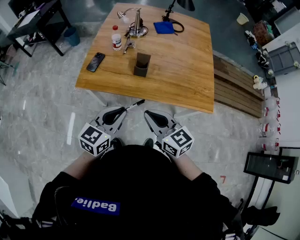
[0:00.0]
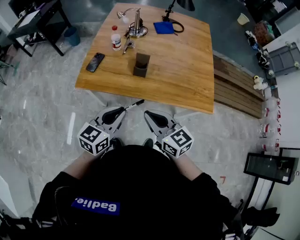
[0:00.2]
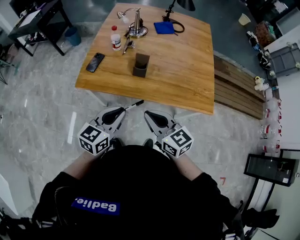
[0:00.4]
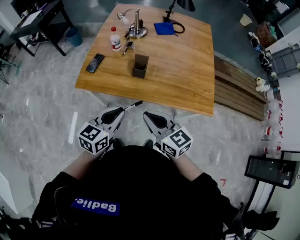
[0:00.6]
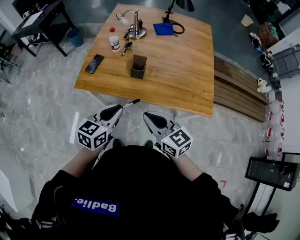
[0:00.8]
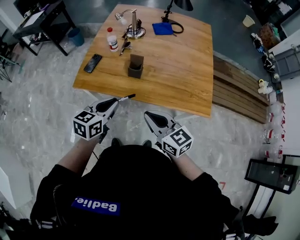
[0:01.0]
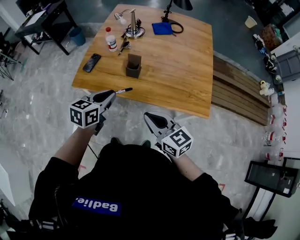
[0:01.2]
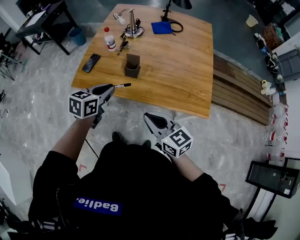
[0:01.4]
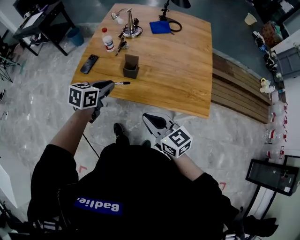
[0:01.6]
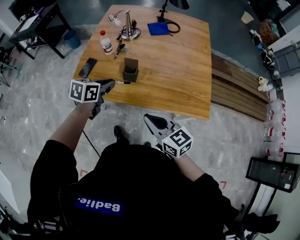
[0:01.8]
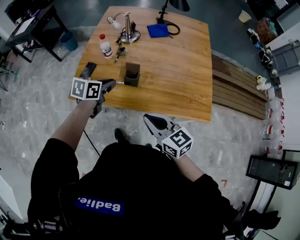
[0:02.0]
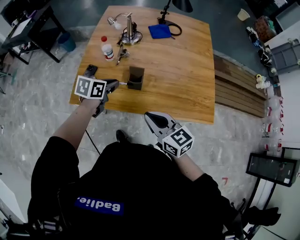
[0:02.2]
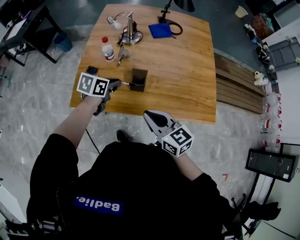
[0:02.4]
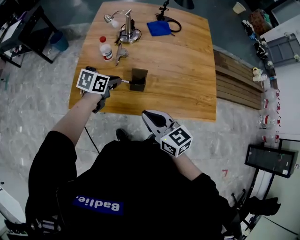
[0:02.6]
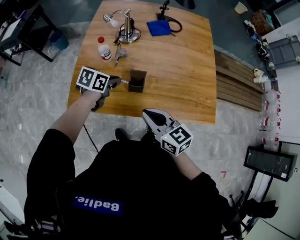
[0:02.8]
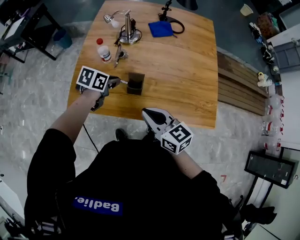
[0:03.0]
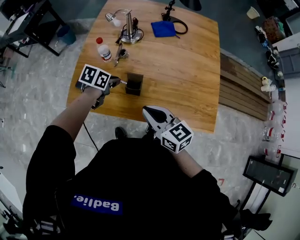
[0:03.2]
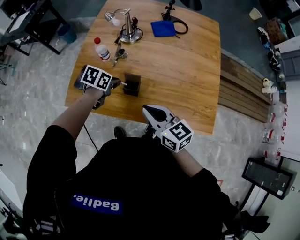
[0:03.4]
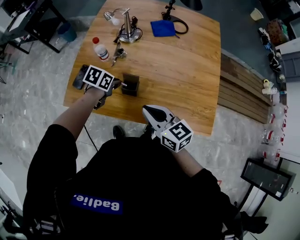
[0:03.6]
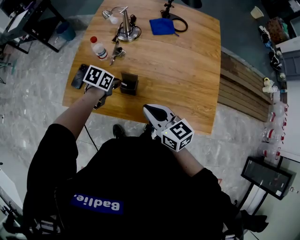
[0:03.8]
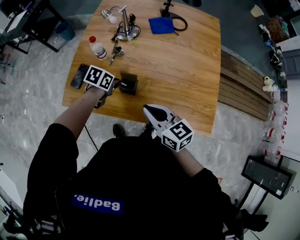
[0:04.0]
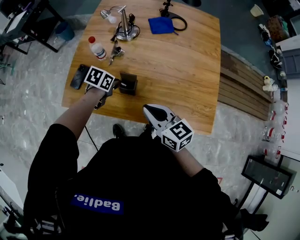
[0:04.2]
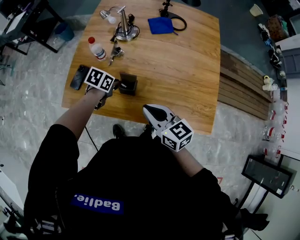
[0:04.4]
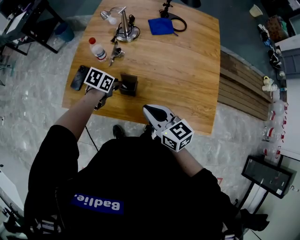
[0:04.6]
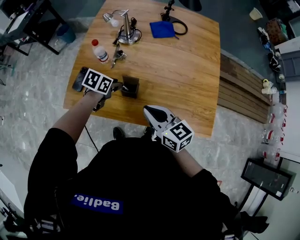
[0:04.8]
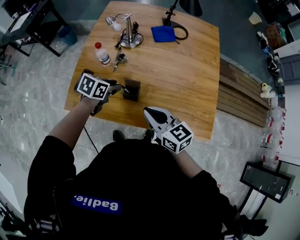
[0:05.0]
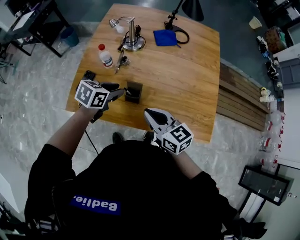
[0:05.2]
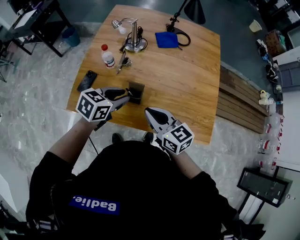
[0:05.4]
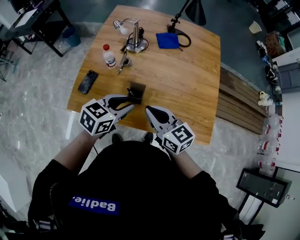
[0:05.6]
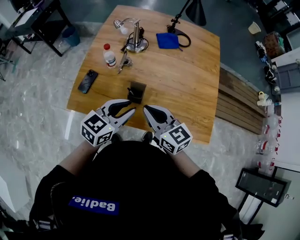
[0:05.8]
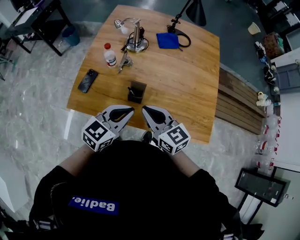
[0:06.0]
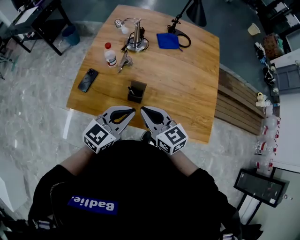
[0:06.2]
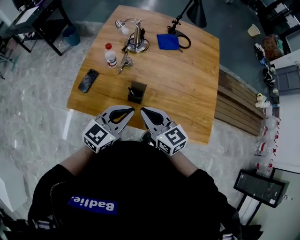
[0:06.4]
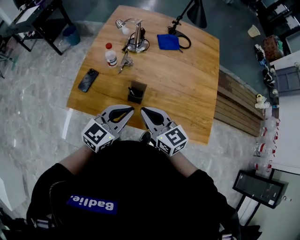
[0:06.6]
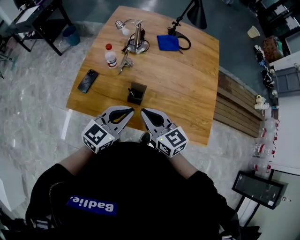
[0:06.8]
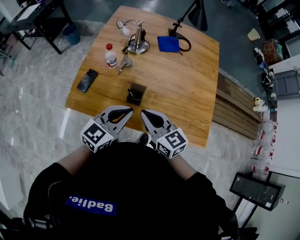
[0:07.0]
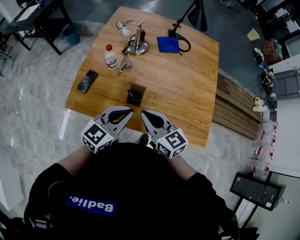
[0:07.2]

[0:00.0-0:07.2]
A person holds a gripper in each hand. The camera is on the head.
0:00.0 to 0:01.4: The right gripper goes roughly 10 cm to the right; the left gripper shifts roughly 10 cm forward.
0:01.4 to 0:02.8: The right gripper moves forward and to the left, approximately 20 cm. Meanwhile the left gripper shifts some 20 cm forward and downward, and swivels about 20 degrees.
0:02.8 to 0:04.4: The right gripper heads forward and to the right, covering about 10 cm. The left gripper heads downward, covering about 10 cm.
0:04.4 to 0:05.8: The left gripper travels upward and backward by roughly 20 cm, and tilts its fingers roughly 40 degrees upward. The right gripper ends up approximately 5 cm from where it was.
0:05.8 to 0:07.2: The left gripper closes its fingers.

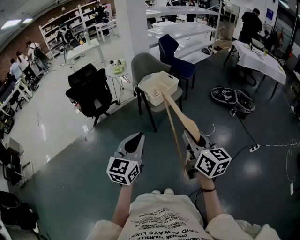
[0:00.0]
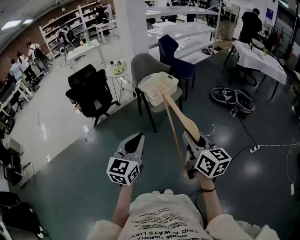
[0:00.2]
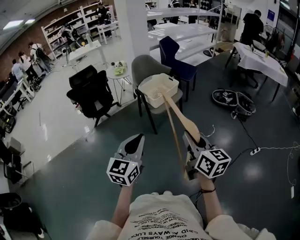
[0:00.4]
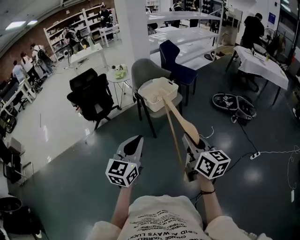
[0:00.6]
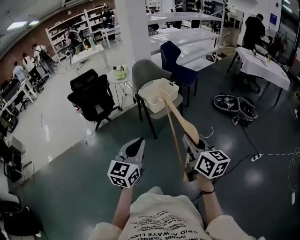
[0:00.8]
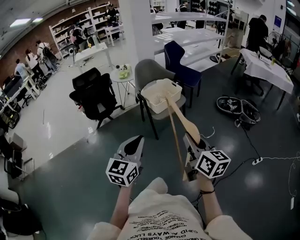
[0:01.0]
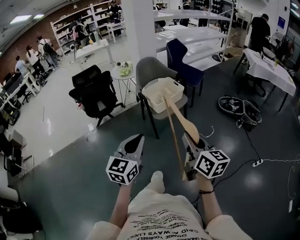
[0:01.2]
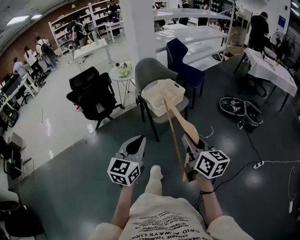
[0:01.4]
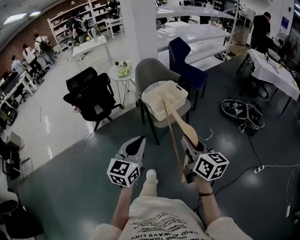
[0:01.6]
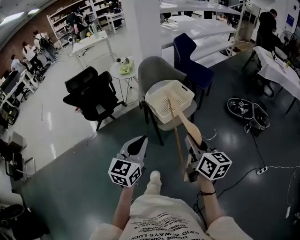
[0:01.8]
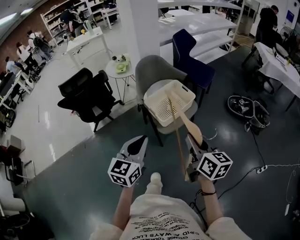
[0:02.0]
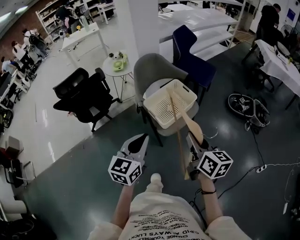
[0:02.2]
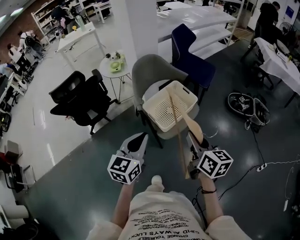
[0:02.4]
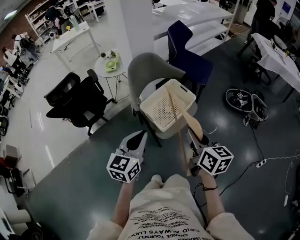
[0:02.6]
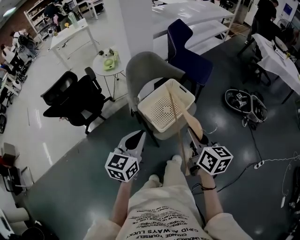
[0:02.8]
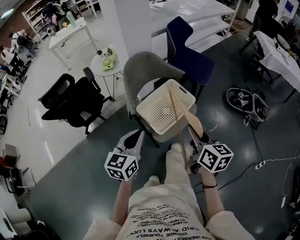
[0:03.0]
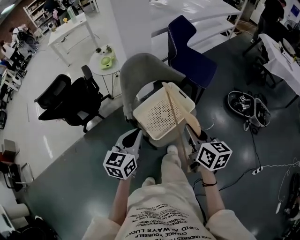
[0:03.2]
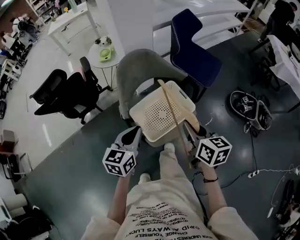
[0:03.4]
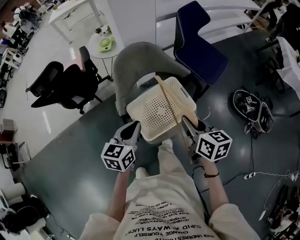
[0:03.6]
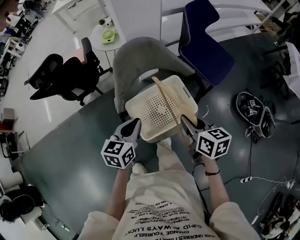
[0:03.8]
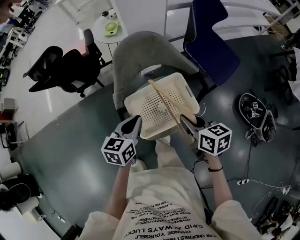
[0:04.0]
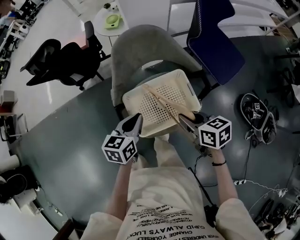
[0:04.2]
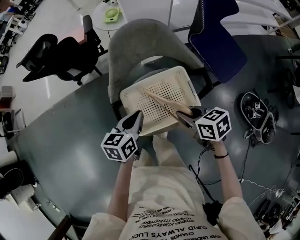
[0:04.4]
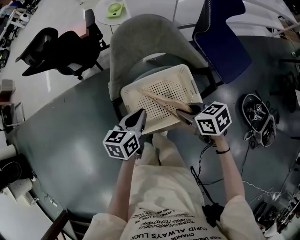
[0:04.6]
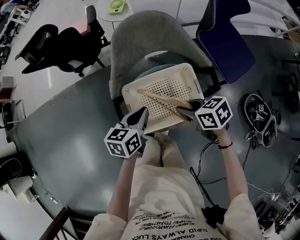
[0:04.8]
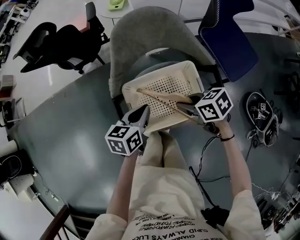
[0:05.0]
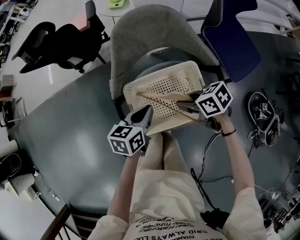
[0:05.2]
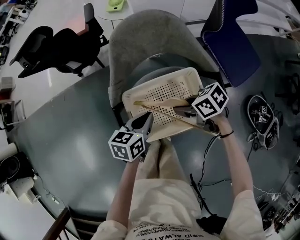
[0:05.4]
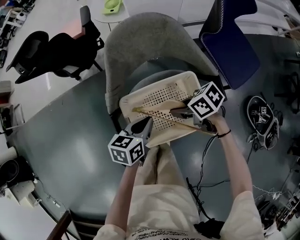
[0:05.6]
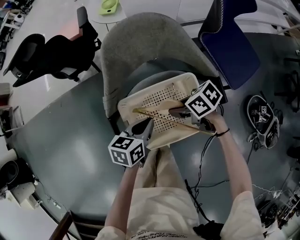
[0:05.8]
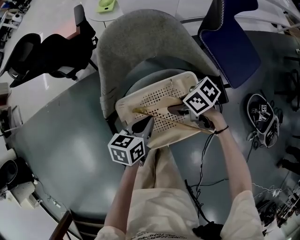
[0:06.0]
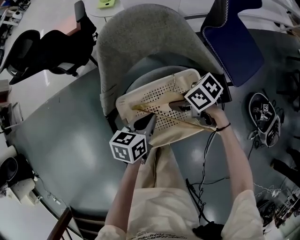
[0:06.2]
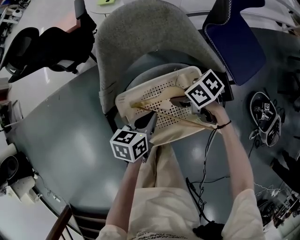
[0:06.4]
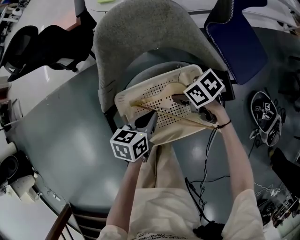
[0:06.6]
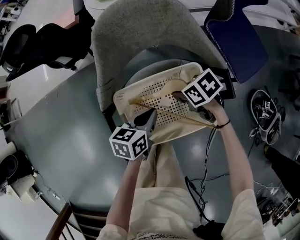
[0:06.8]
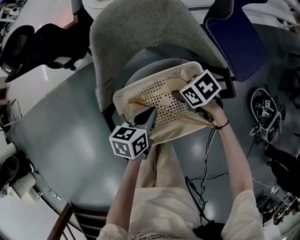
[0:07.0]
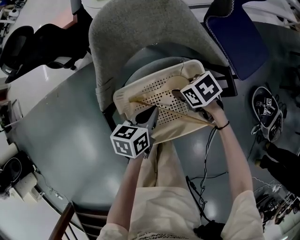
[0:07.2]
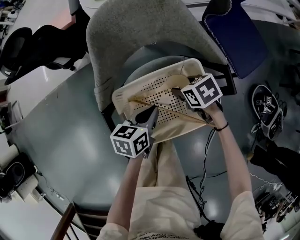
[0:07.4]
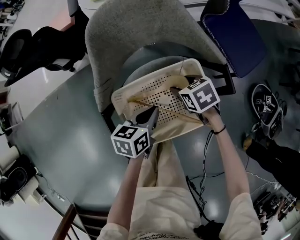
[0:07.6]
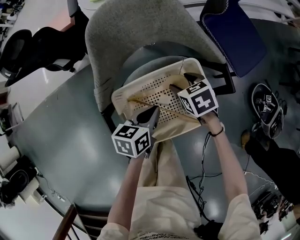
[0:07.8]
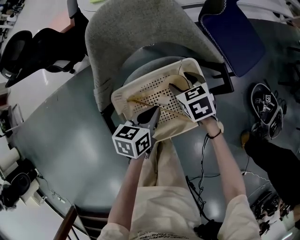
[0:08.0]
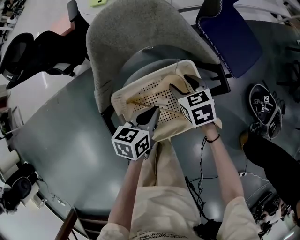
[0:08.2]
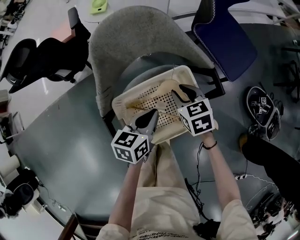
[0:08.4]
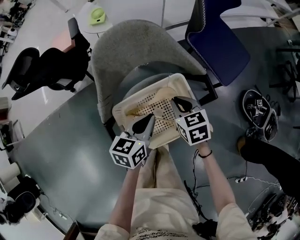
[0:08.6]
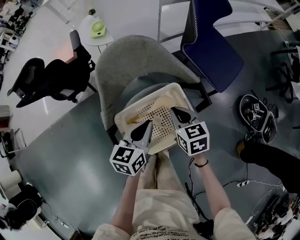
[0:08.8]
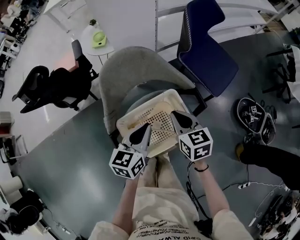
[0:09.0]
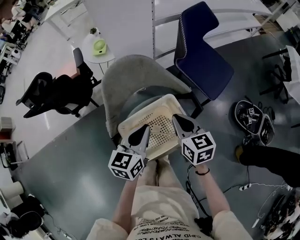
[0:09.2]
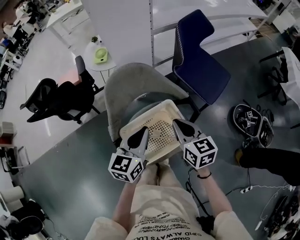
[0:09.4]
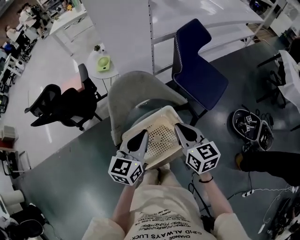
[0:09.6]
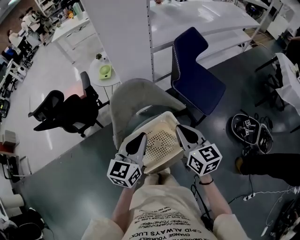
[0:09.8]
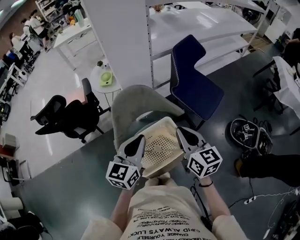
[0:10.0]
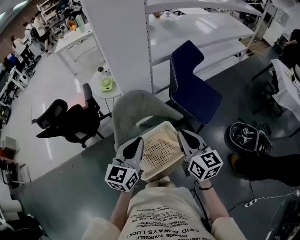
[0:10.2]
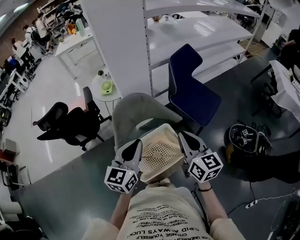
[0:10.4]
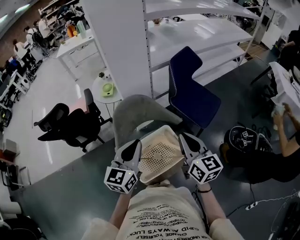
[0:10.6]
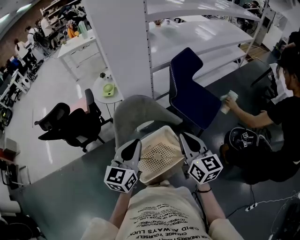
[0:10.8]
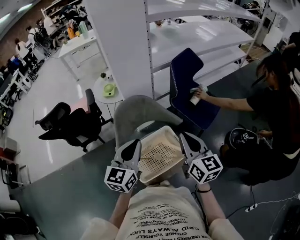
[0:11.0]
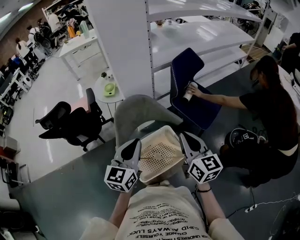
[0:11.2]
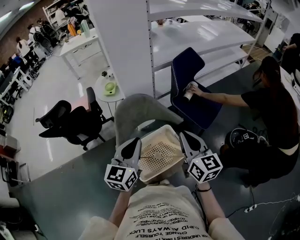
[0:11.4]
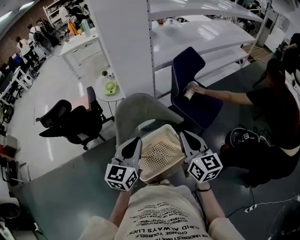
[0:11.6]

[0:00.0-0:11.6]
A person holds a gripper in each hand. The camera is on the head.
0:00.0 to 0:01.4: The two grippers go some 10 cm forward.
0:01.4 to 0:02.8: The grippers both shift forward by approximately 35 cm.
0:02.8 to 0:04.4: The left gripper moves about 30 cm, and changes its angle by some 40 degrees. Meanwhile the right gripper changes place by roughly 30 cm, and turns by about 60 degrees.
0:04.4 to 0:05.8: The grippers both shift downward by some 10 cm. The right gripper rotates roughly 30 degrees.
0:05.8 to 0:07.2: The right gripper goes approximately 5 cm downward, rotates some 20 degrees, and opens up.
0:07.2 to 0:08.8: The grippers both shift upward by some 15 cm. The right gripper rotates roughly 40 degrees, and closes its fingers.
0:08.8 to 0:10.2: Both grippers travel together upward, roughly 25 cm. The right gripper changes its angle by about 30 degrees. Meanwhile the left gripper swivels about 30 degrees.
0:10.2 to 0:11.6: The grippers stay close to where they were, moving slightly.

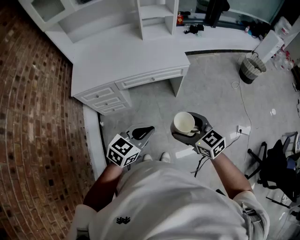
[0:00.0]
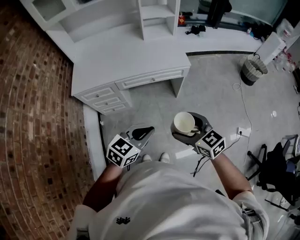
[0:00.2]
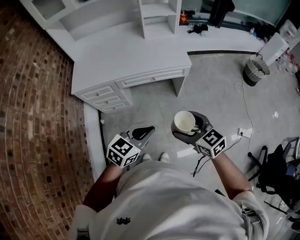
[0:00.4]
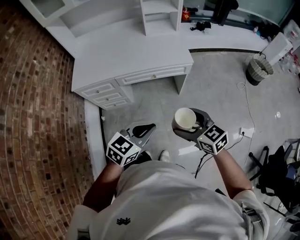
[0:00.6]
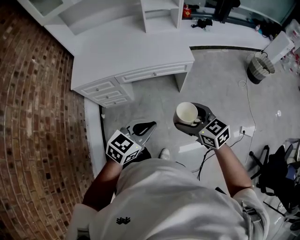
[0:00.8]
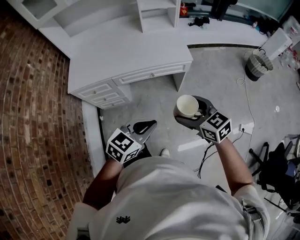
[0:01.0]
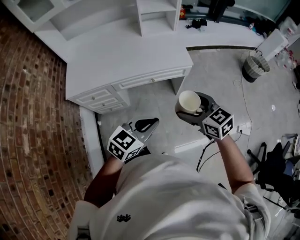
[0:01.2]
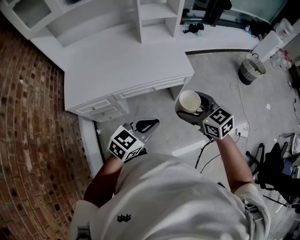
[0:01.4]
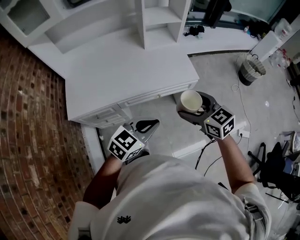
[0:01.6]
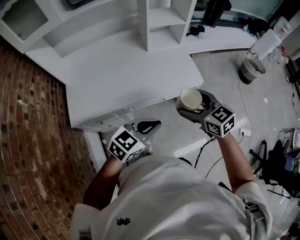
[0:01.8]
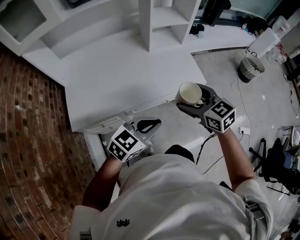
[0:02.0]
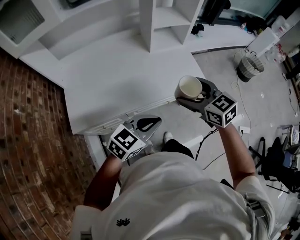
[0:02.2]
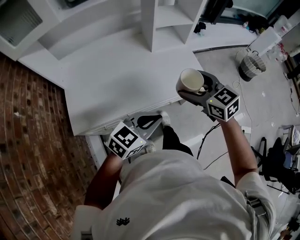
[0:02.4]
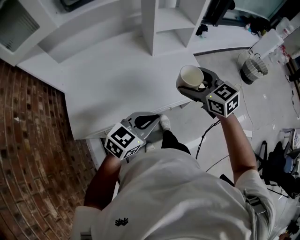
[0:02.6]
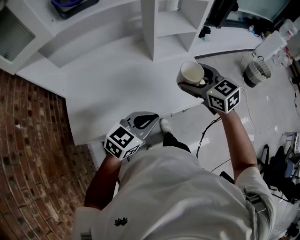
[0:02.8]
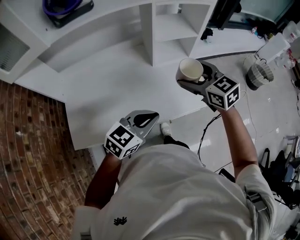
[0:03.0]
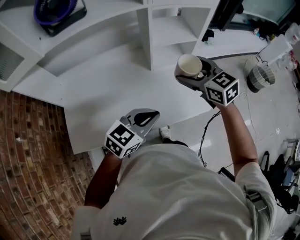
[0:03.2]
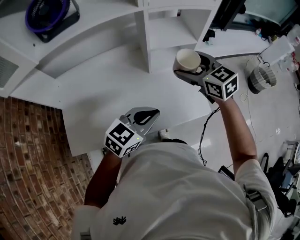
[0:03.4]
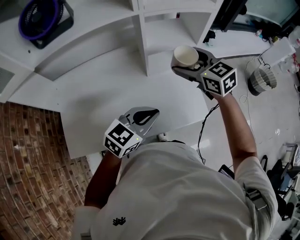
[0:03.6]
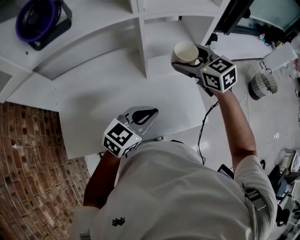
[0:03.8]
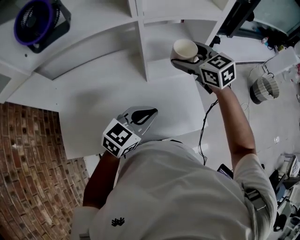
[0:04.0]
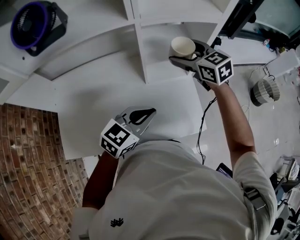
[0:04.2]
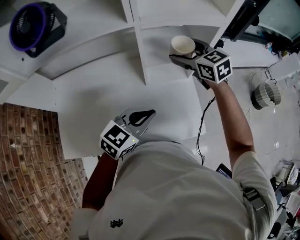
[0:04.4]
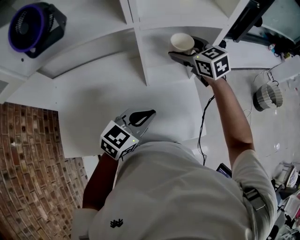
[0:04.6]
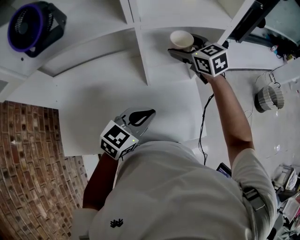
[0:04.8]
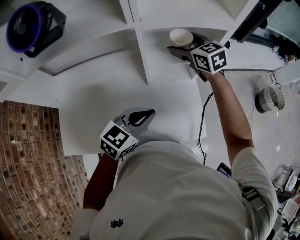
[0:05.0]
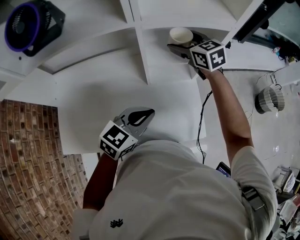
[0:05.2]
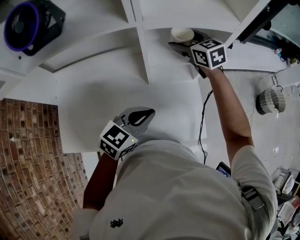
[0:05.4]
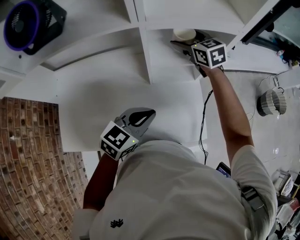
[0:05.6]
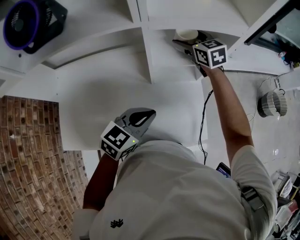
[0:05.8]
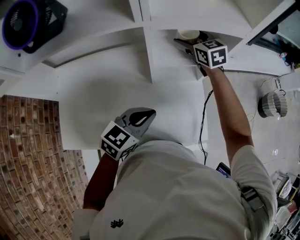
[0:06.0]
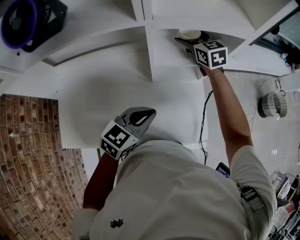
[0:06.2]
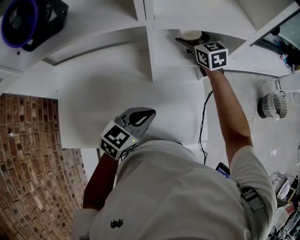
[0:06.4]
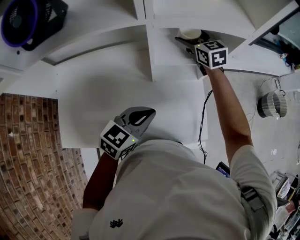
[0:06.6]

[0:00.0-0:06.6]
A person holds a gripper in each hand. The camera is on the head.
0:00.0 to 0:01.6: The two grippers go approximately 25 cm forward.
0:01.6 to 0:03.2: The grippers both shift forward by approximately 30 cm.
0:03.2 to 0:05.0: The right gripper travels forward by about 25 cm, while the left gripper moves forward, roughly 15 cm.
0:05.0 to 0:06.6: The right gripper moves forward, some 5 cm.
